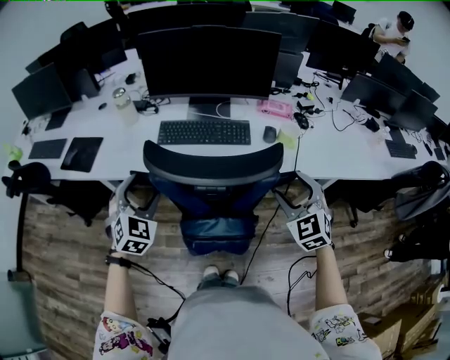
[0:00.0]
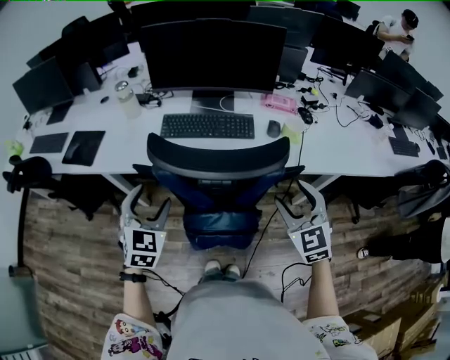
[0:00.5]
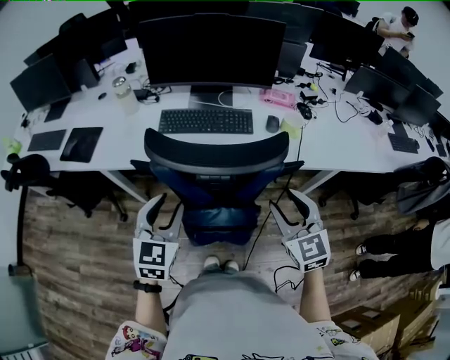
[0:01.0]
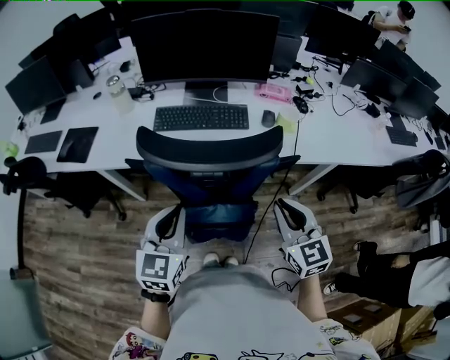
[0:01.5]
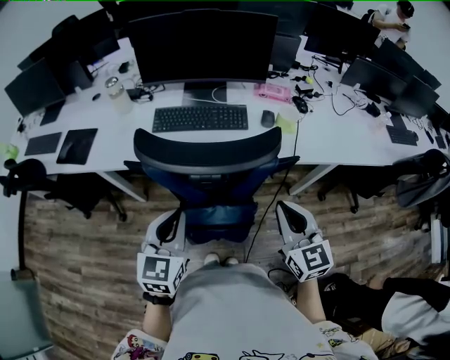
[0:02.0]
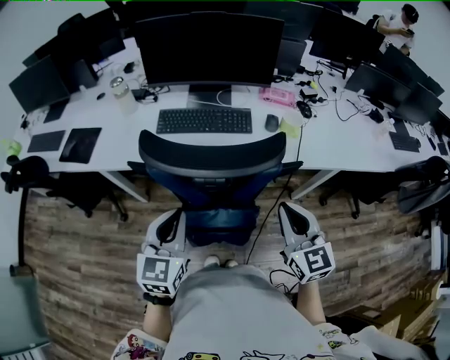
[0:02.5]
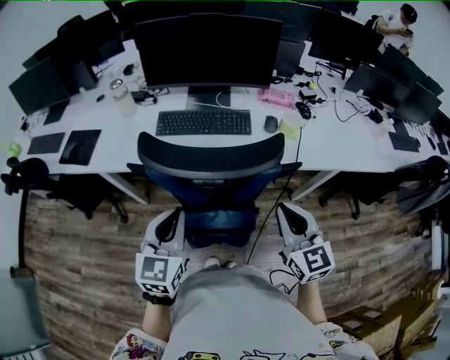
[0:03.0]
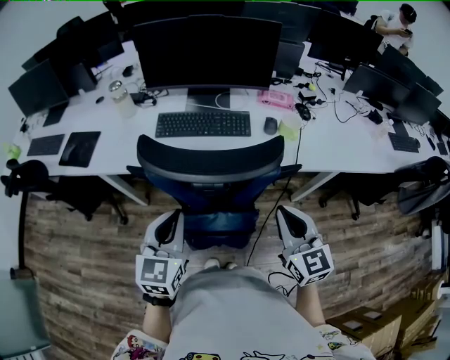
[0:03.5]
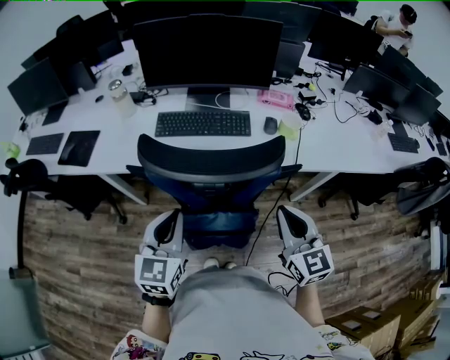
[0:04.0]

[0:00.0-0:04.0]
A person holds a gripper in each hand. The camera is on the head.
0:00.0 to 0:02.0: The right gripper shifts some 10 cm backward, changes its angle by some 40 degrees, and closes, while the left gripper travels backward and to the right by some 15 cm, turns by approximately 40 degrees, and closes its fingers.
0:02.0 to 0:04.0: There are only small adjustments of the grippers.

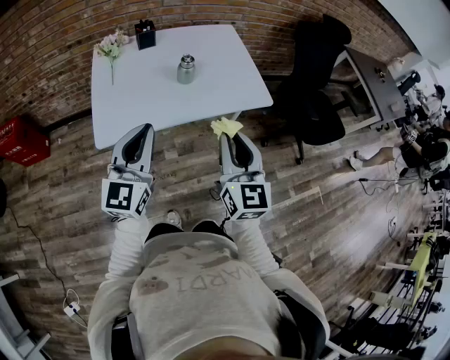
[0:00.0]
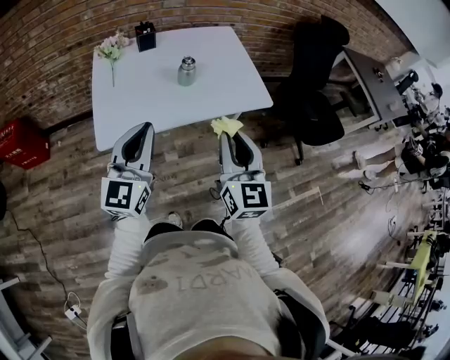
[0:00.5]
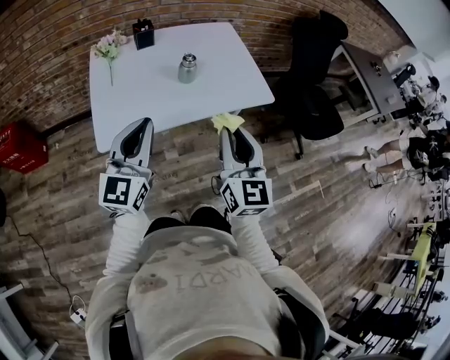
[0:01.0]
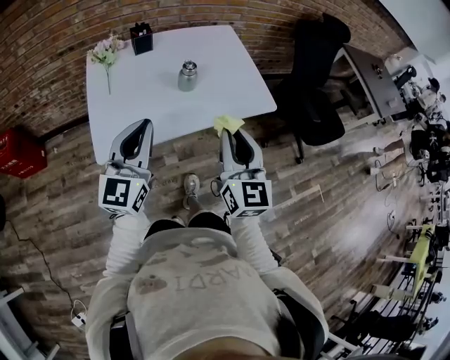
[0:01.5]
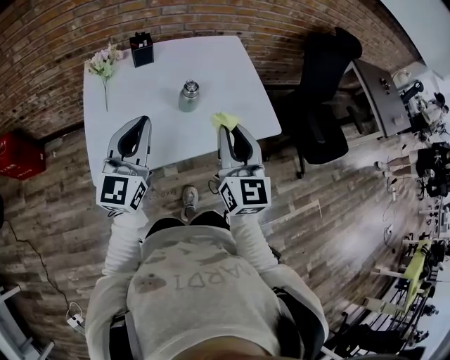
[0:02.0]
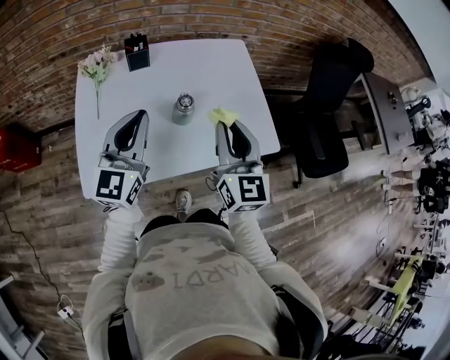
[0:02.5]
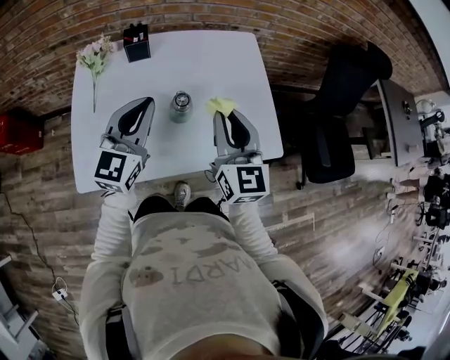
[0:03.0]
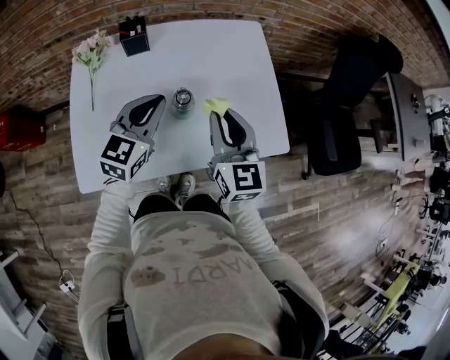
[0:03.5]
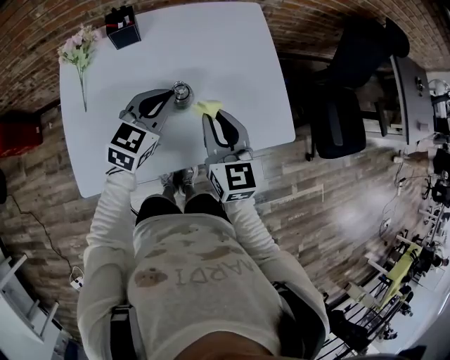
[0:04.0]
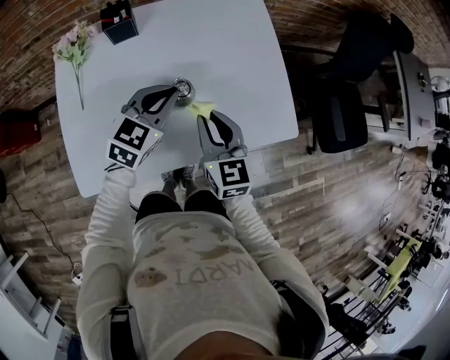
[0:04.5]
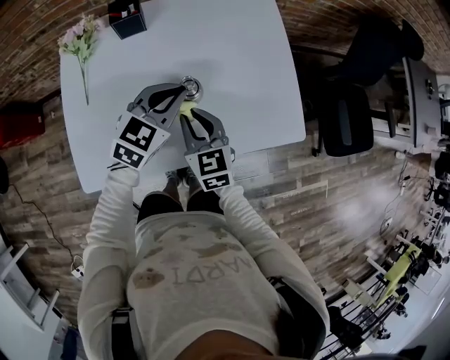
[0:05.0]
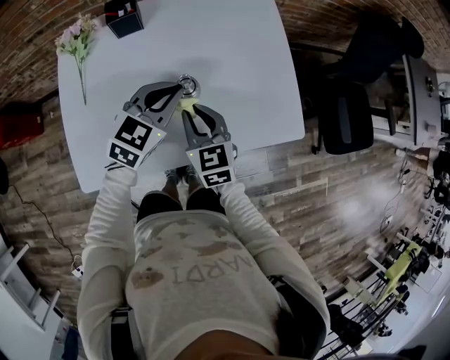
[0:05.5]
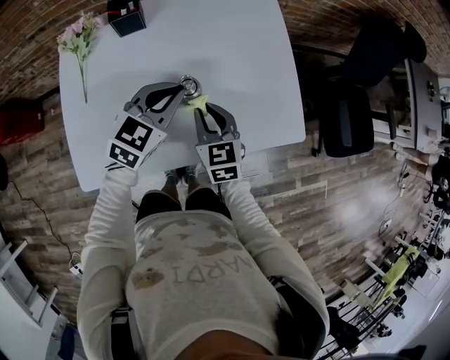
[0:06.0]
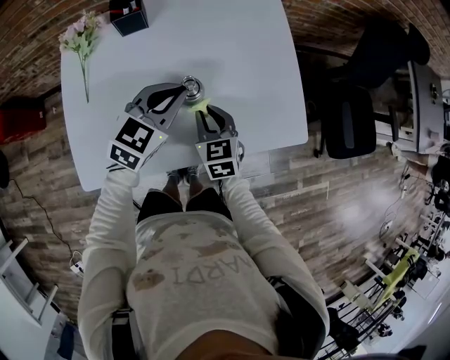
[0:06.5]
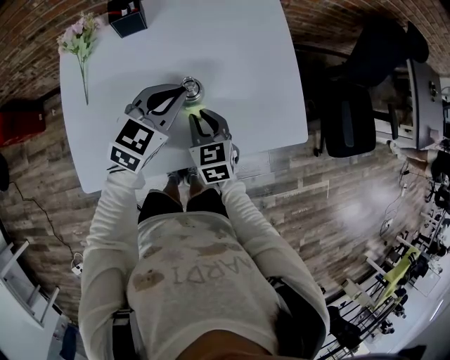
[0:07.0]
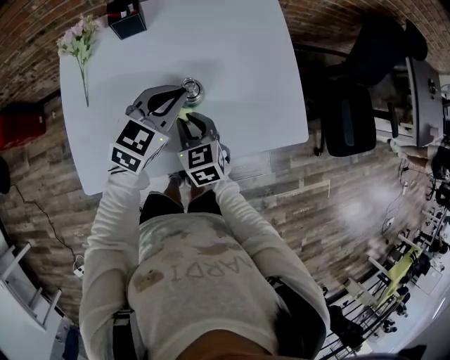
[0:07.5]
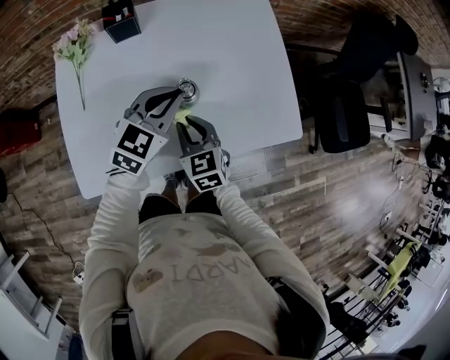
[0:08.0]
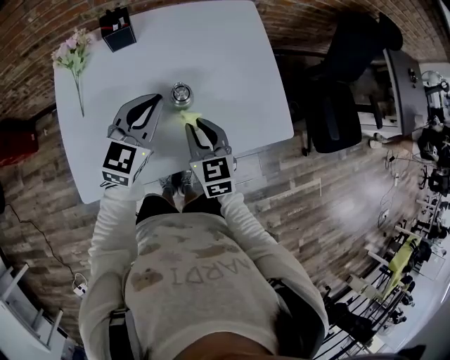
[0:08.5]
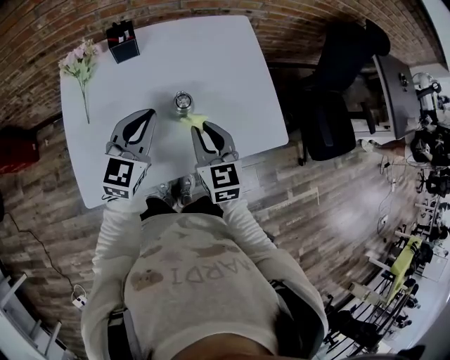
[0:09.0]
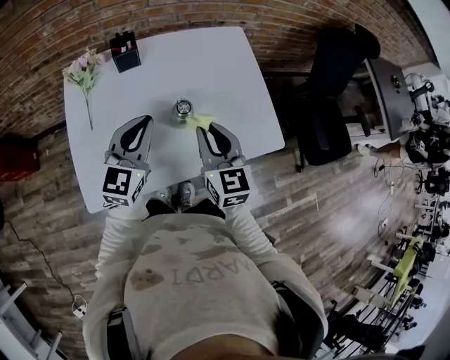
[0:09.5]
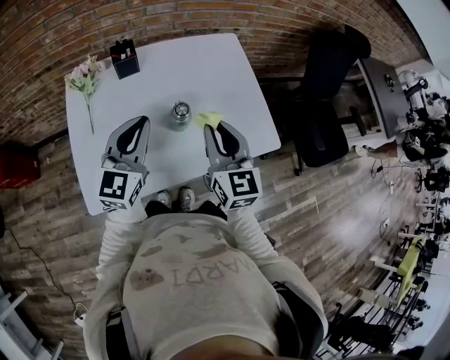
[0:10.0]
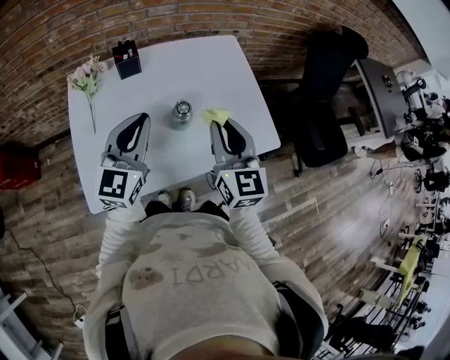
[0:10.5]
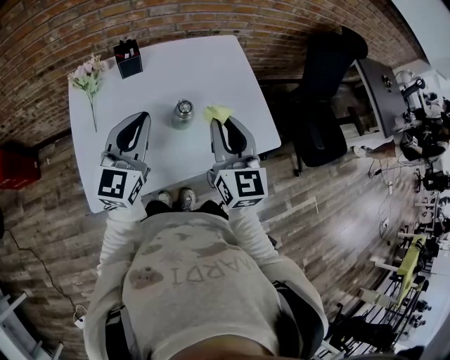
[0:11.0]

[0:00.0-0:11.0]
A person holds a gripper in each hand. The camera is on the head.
0:00.0 to 0:02.0: Both grippers travel together forward, approximately 15 cm.
0:02.0 to 0:03.5: The grippers both shift forward and downward by roughly 20 cm. The left gripper swivels approximately 20 degrees.
0:03.5 to 0:05.5: The left gripper goes roughly 5 cm downward; the right gripper shifts approximately 15 cm downward and to the left, and changes its angle by approximately 20 degrees.
0:05.5 to 0:07.5: The right gripper shifts approximately 5 cm downward.
0:07.5 to 0:09.0: The left gripper is displaced to the left and upward by roughly 10 cm; the right gripper shifts roughly 15 cm upward and to the right.
0:09.0 to 0:11.0: The left gripper is displaced upward by roughly 10 cm. The right gripper moves upward, roughly 15 cm, and rotates approximately 20 degrees.

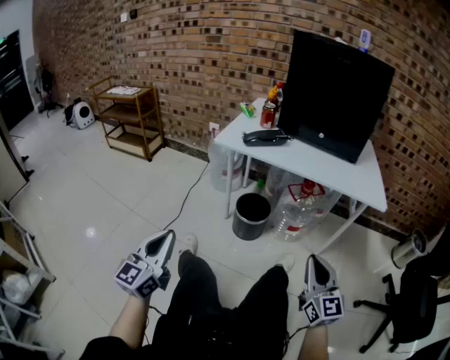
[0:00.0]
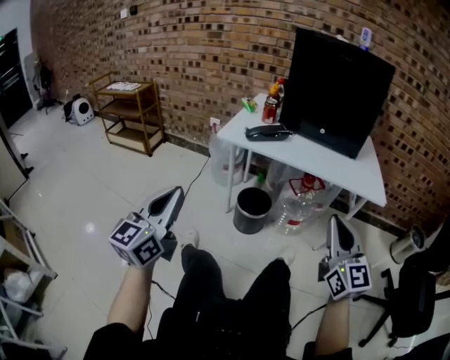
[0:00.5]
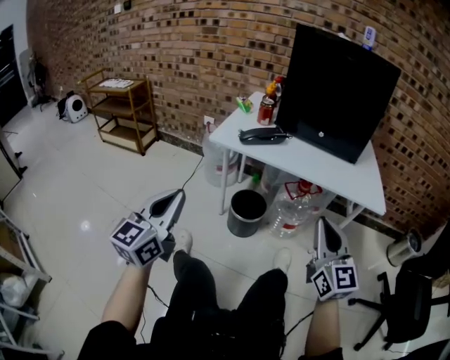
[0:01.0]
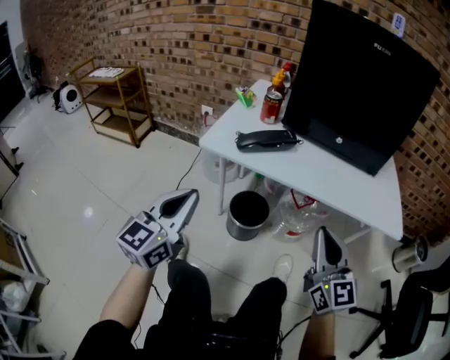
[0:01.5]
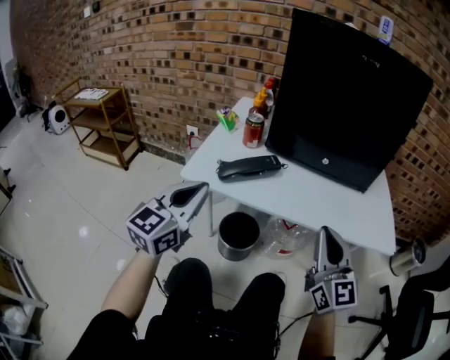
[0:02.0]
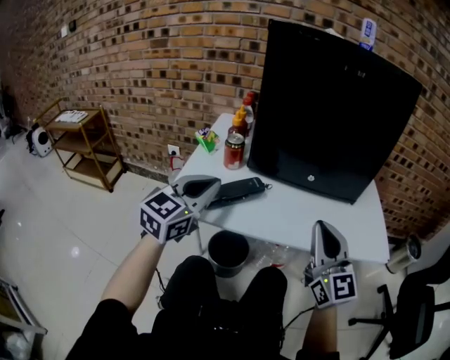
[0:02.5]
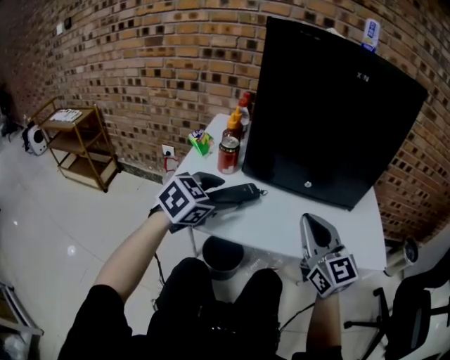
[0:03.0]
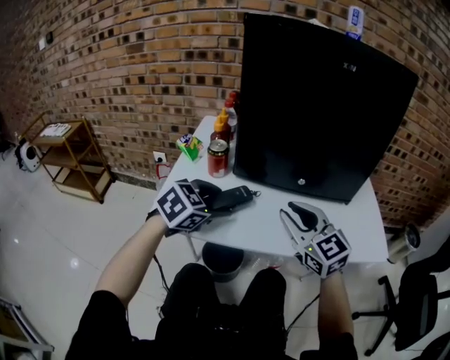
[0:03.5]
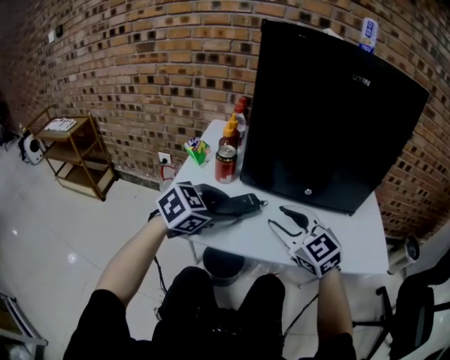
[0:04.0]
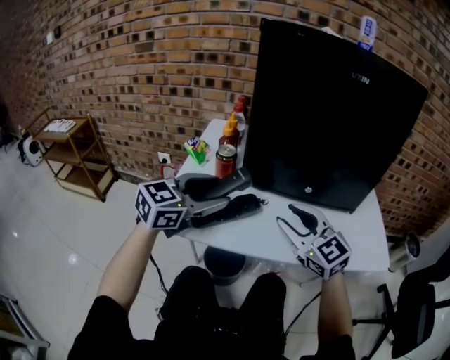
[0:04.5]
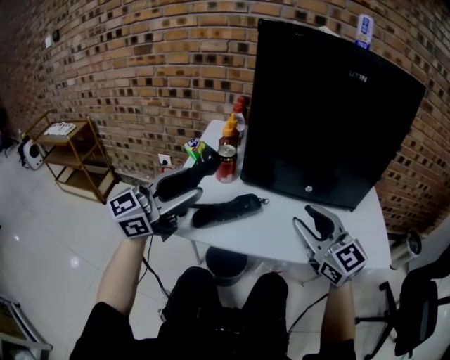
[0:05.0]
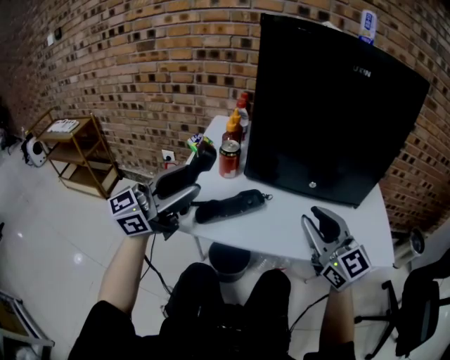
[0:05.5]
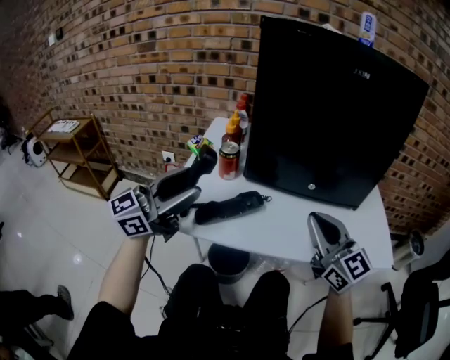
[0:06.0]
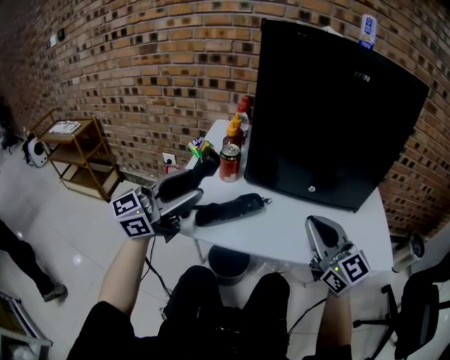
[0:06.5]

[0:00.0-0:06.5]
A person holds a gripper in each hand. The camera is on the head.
0:00.0 to 0:02.0: The right gripper heads forward and upward, covering about 25 cm; the left gripper heads forward, covering about 35 cm.
0:02.0 to 0:04.5: The left gripper is displaced forward by roughly 15 cm, changes its angle by approximately 30 degrees, and opens up; the right gripper shifts roughly 15 cm forward and to the left, rotates about 30 degrees, and opens up.
0:04.5 to 0:06.5: The right gripper travels to the right by some 5 cm, and closes up, while the left gripper moves upward, to the left and backward, about 10 cm, and angles its fingers upward, by about 30 degrees.

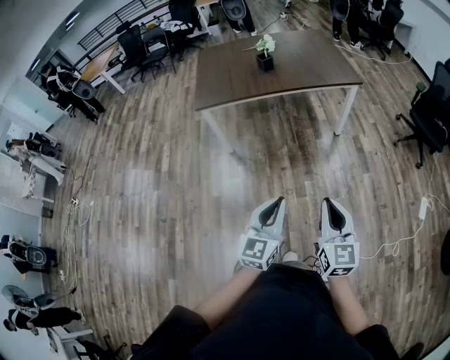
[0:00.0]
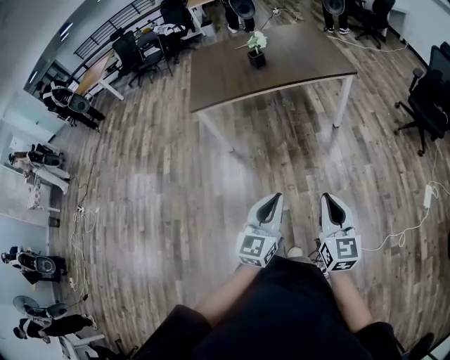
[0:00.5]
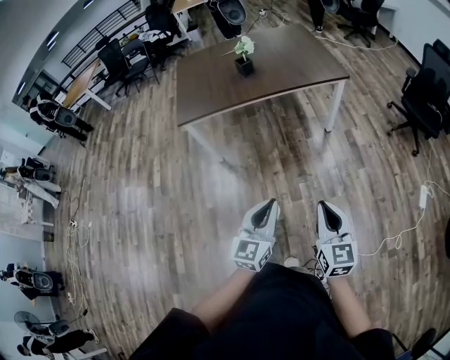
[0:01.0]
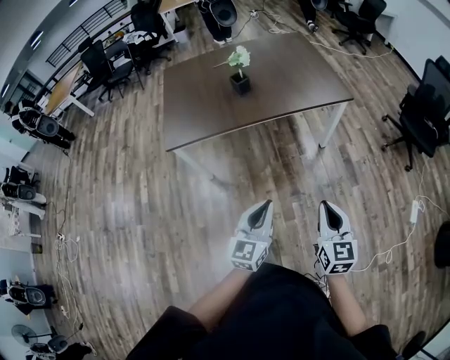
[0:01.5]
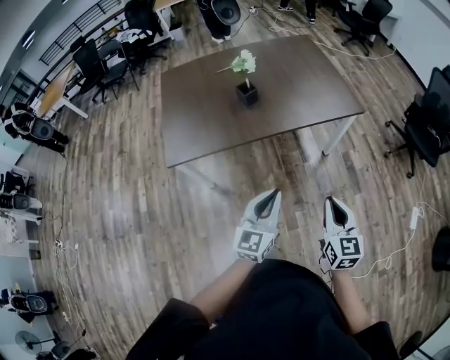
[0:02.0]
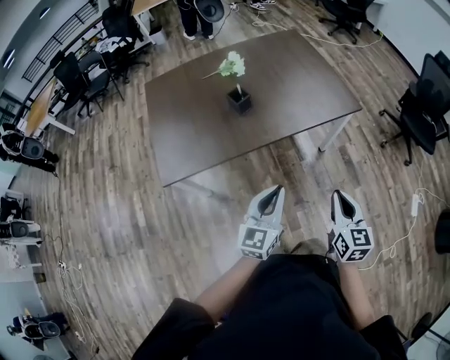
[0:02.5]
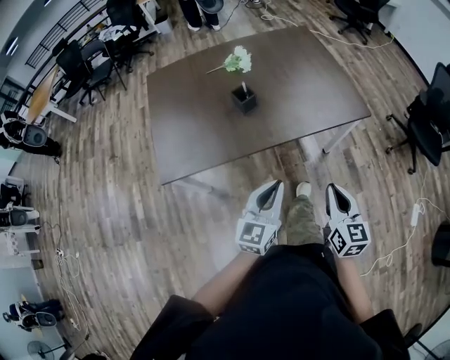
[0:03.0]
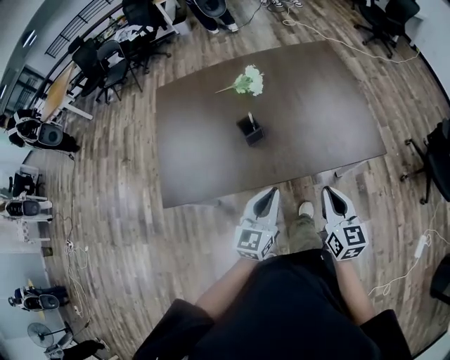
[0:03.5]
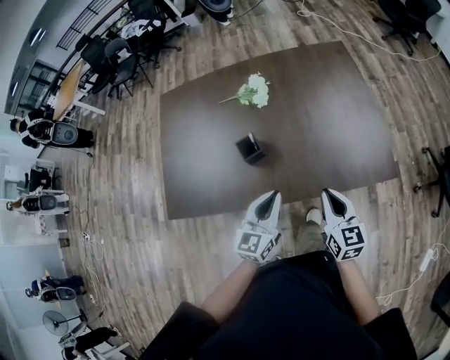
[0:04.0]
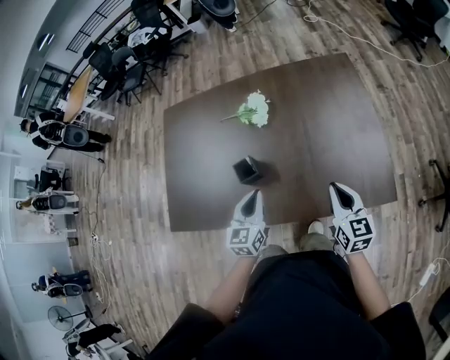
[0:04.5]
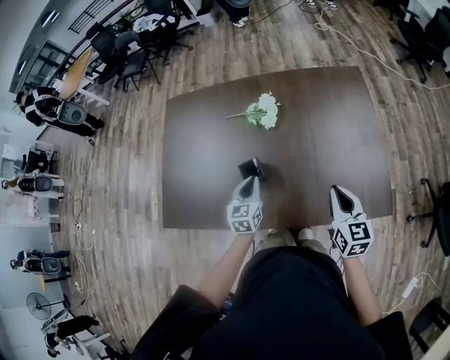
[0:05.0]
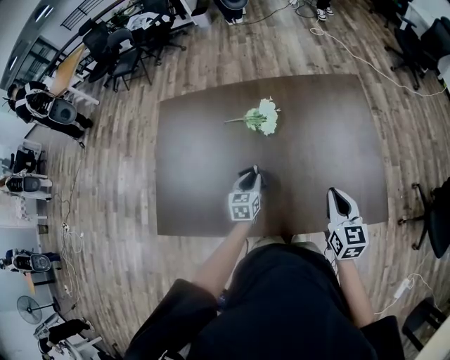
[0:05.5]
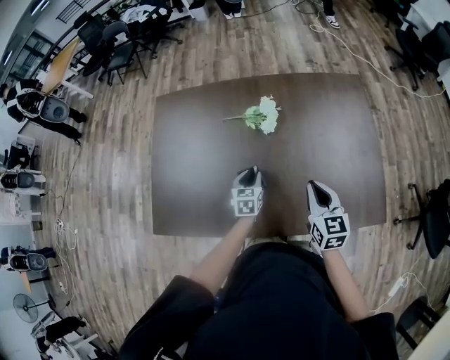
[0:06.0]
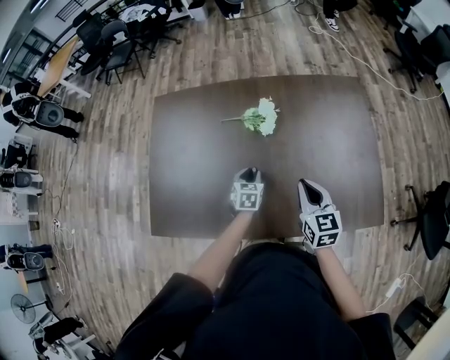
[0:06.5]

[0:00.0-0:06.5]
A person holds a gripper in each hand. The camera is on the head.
0:00.0 to 0:02.0: Both grippers are carried forward, approximately 50 cm.
0:02.0 to 0:04.5: The two grippers travel together, approximately 60 cm. The right gripper rotates approximately 20 degrees. Meanwhile the left gripper changes its angle by approximately 30 degrees.
0:04.5 to 0:06.5: The left gripper goes some 25 cm forward, downward and to the left, swivels roughly 30 degrees, and opens its fingers. The right gripper travels to the left and forward by roughly 20 cm.
